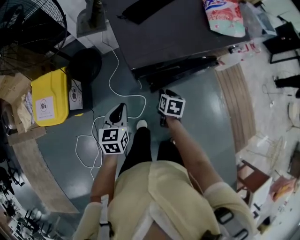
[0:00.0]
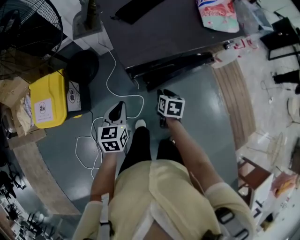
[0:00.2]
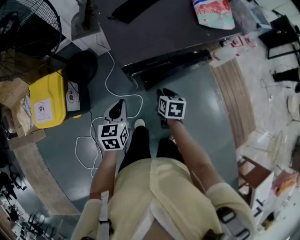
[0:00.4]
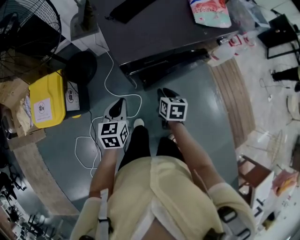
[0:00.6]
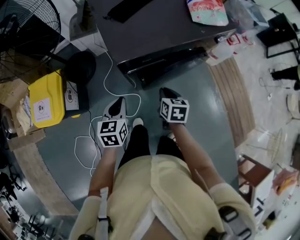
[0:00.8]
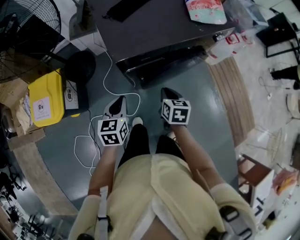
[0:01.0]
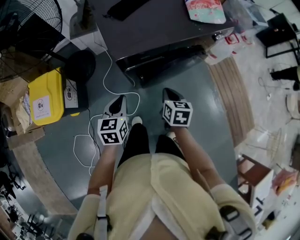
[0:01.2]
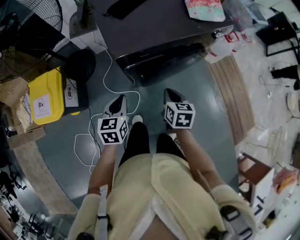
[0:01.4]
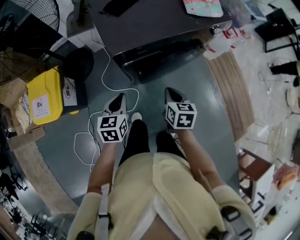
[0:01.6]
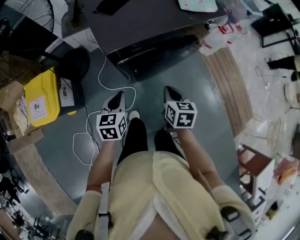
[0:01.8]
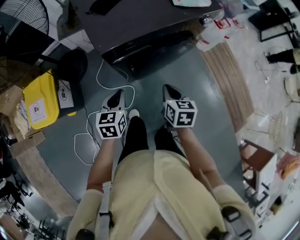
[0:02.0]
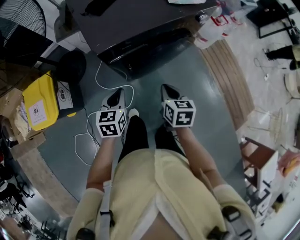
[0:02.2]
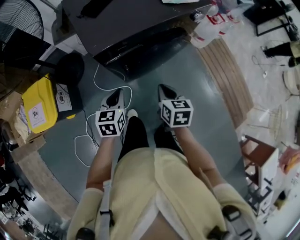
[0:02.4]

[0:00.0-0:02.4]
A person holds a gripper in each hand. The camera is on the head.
0:00.0 to 0:01.2: The left gripper is displaced to the right by approximately 5 cm; the right gripper heads upward and backward, covering approximately 10 cm, and closes up.
0:01.2 to 0:02.4: The left gripper travels to the right by some 5 cm. The right gripper moves roughly 5 cm.

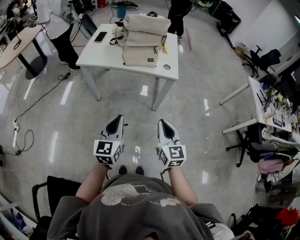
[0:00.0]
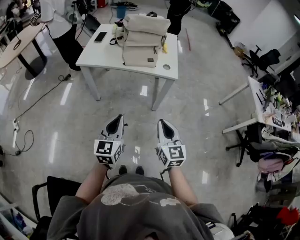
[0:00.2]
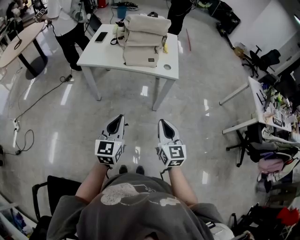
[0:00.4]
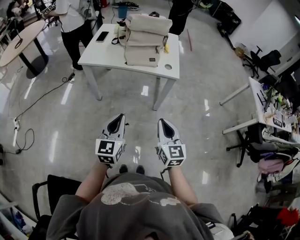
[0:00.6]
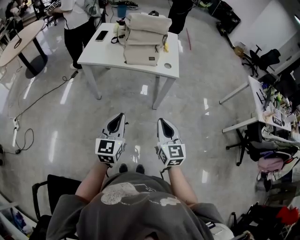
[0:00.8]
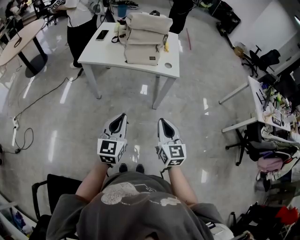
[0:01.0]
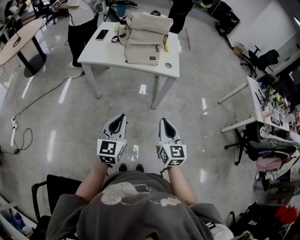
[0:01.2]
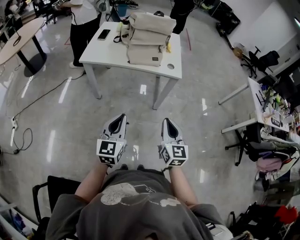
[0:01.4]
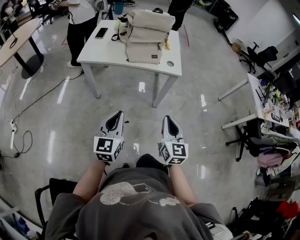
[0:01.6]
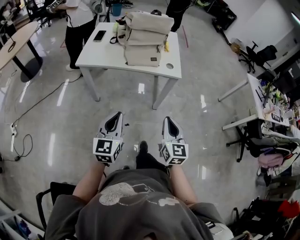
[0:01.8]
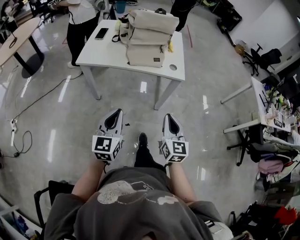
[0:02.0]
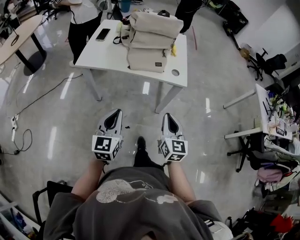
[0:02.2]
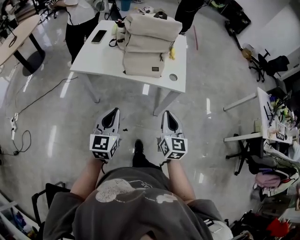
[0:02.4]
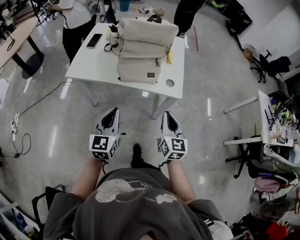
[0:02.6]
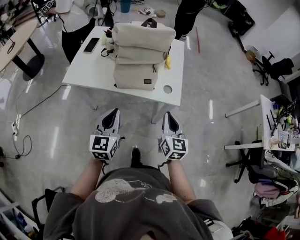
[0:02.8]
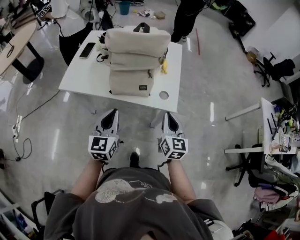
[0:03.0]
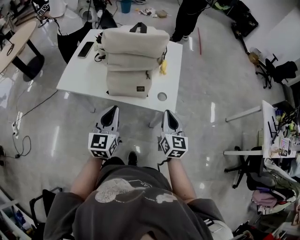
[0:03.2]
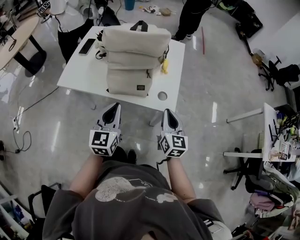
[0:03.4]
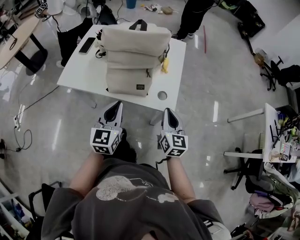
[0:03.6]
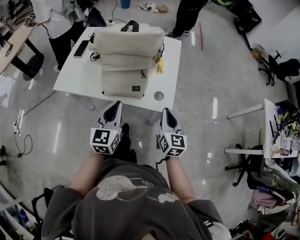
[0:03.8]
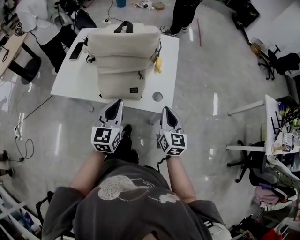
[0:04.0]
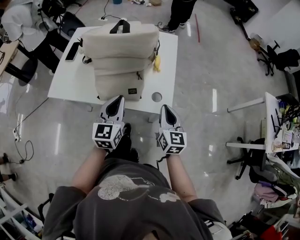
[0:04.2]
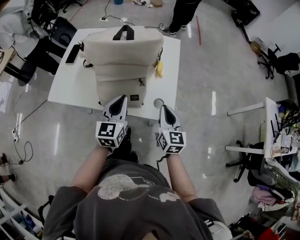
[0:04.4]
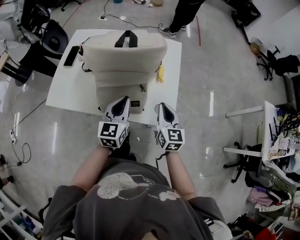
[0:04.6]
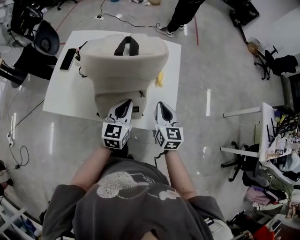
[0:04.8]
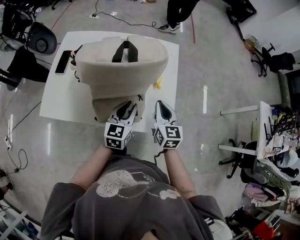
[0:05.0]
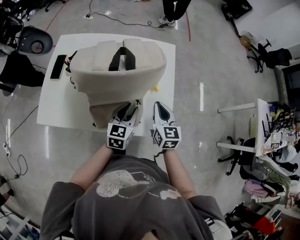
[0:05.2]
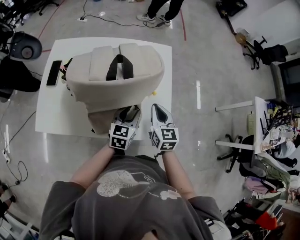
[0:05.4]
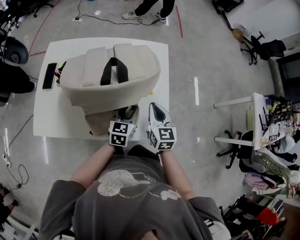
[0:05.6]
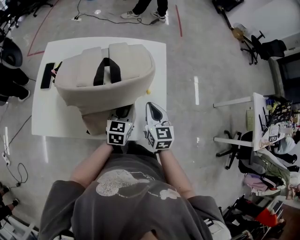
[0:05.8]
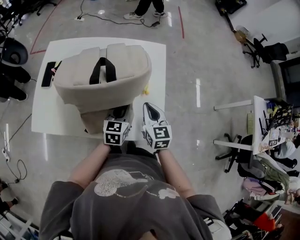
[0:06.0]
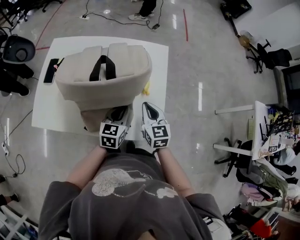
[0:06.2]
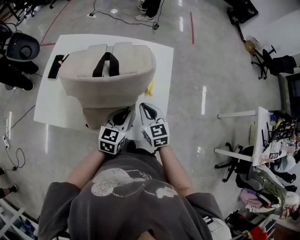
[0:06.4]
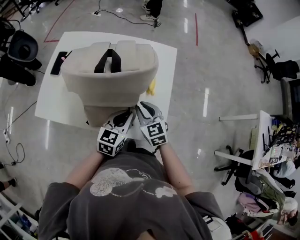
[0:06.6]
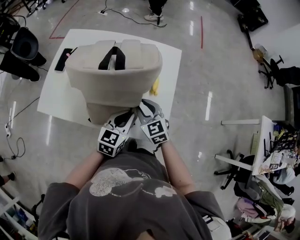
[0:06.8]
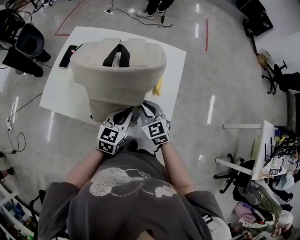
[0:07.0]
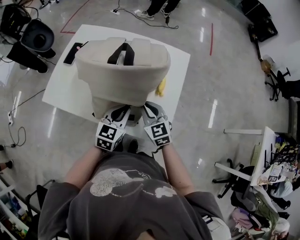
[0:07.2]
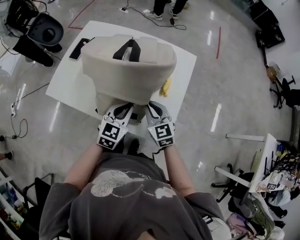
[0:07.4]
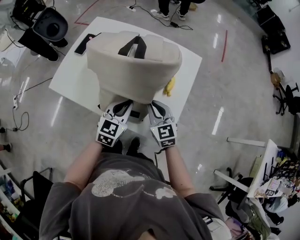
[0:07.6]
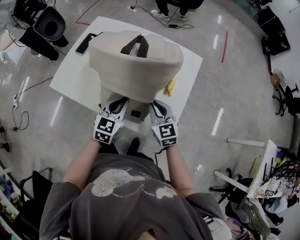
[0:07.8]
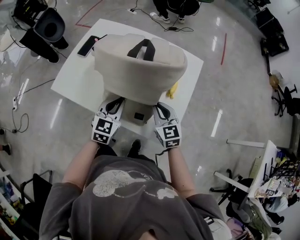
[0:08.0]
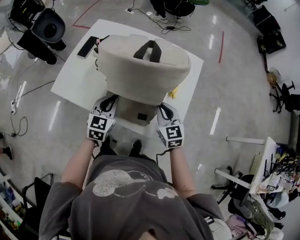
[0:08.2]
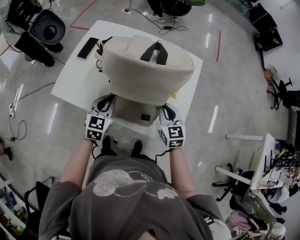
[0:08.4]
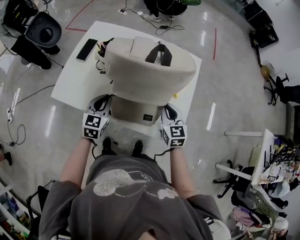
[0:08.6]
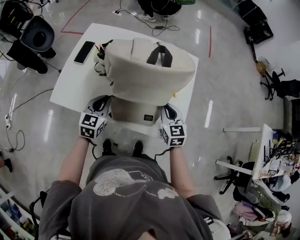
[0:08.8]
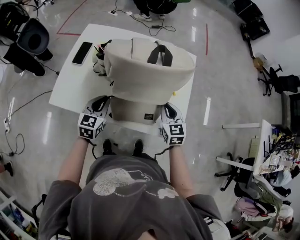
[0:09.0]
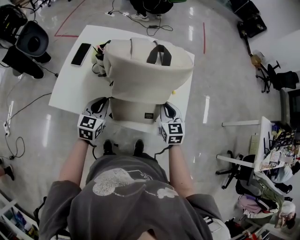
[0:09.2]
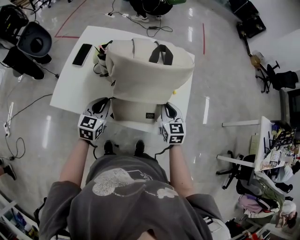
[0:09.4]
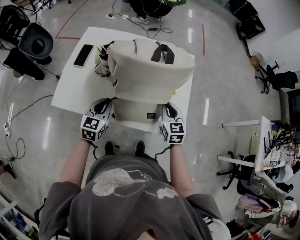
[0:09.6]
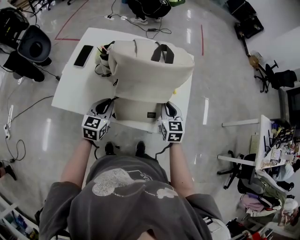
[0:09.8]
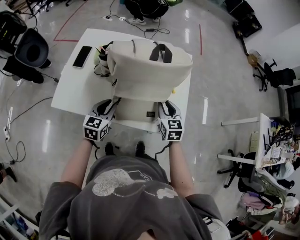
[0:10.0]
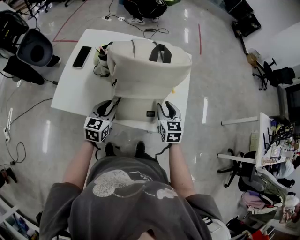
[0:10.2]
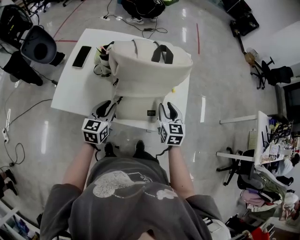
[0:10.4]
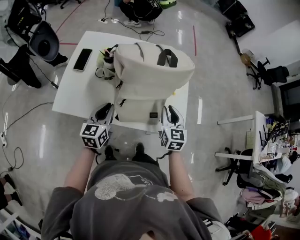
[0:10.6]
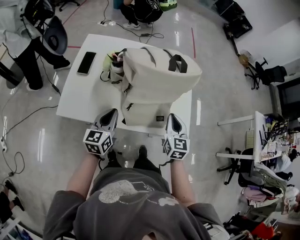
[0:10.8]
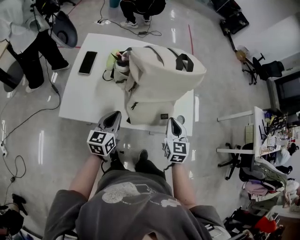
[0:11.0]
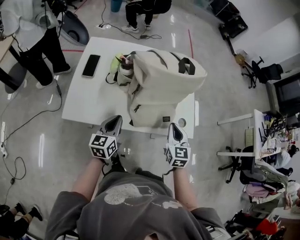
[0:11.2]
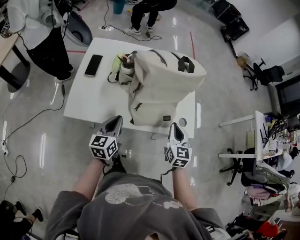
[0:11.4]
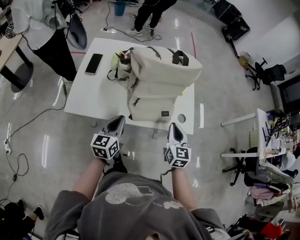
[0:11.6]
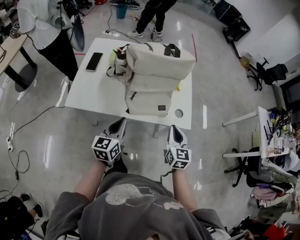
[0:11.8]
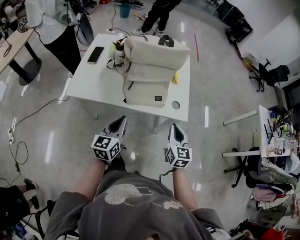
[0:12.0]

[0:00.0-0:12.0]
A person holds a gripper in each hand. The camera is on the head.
0:00.0 to 0:01.6: The grippers stay close to where they were, moving slightly.
0:01.6 to 0:03.0: Both grippers travel together forward, roughly 35 cm.
0:03.0 to 0:04.4: The left gripper shifts some 20 cm forward and to the right; the right gripper goes some 15 cm forward.
0:04.4 to 0:06.0: The left gripper goes some 20 cm forward and downward, rotates about 20 degrees, and opens, then closes again. The right gripper goes some 15 cm forward.
0:06.0 to 0:07.6: The left gripper travels backward, upward and to the left by about 10 cm; the right gripper travels to the left by roughly 5 cm, and turns by some 30 degrees.
0:07.6 to 0:09.0: The right gripper changes its angle by roughly 20 degrees; the left gripper travels to the left by approximately 20 cm.
0:09.0 to 0:10.4: The right gripper opens its fingers.
0:10.4 to 0:12.0: The two grippers go some 20 cm backward. The right gripper closes up. Meanwhile the left gripper closes its fingers.

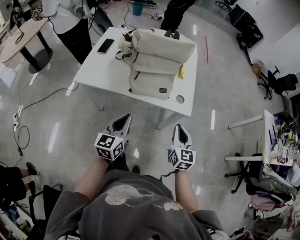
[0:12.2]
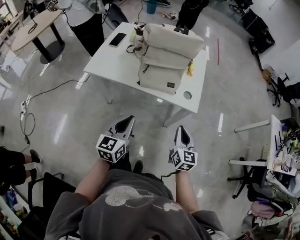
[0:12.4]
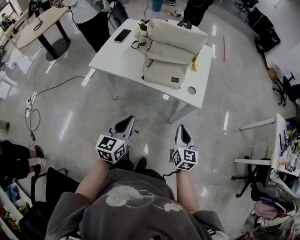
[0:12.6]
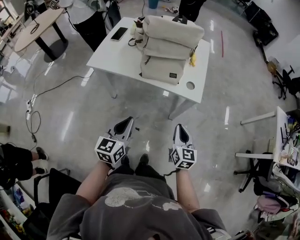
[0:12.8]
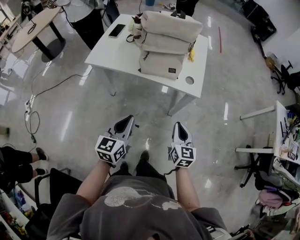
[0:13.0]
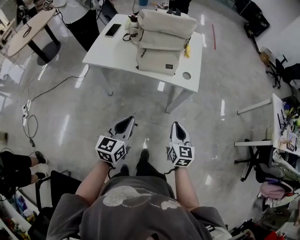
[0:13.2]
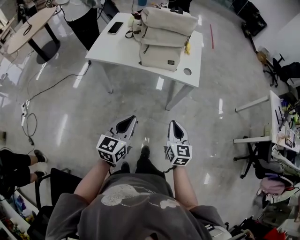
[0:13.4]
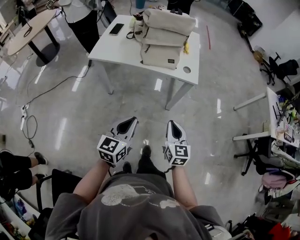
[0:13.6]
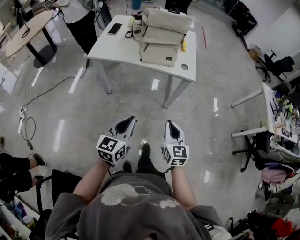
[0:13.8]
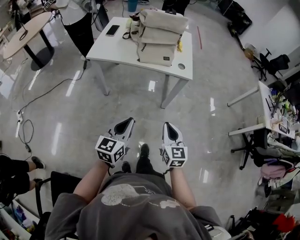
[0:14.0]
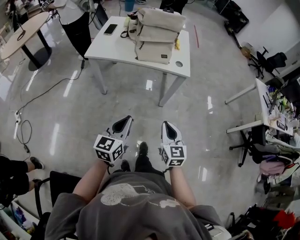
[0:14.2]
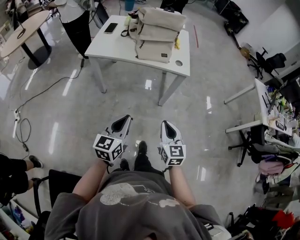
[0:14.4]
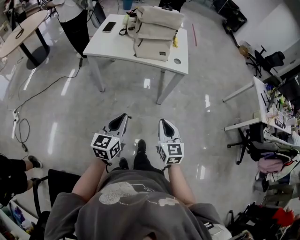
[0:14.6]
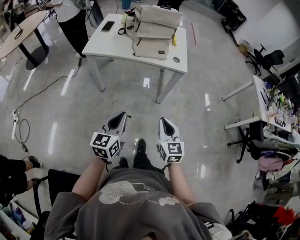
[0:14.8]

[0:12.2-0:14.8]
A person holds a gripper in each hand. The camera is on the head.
0:12.2 to 0:13.4: Both grippers move backward, approximately 20 cm.
0:13.4 to 0:14.8: The grippers both shift backward by some 15 cm.

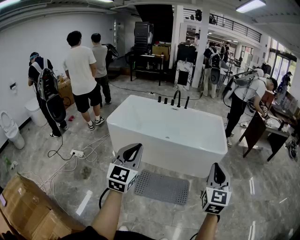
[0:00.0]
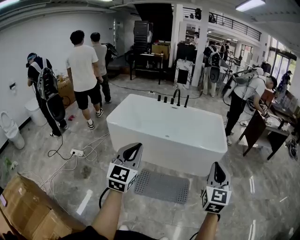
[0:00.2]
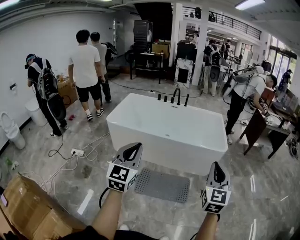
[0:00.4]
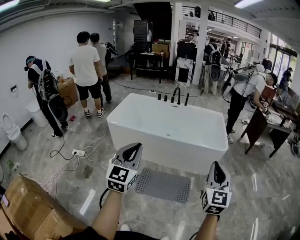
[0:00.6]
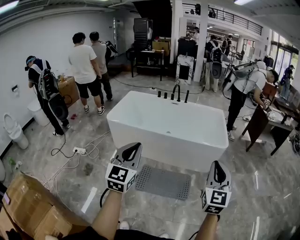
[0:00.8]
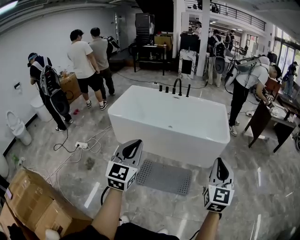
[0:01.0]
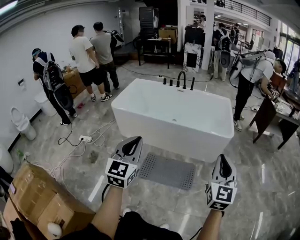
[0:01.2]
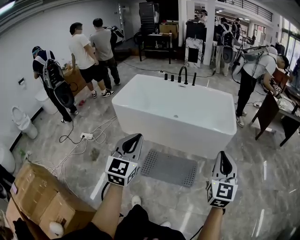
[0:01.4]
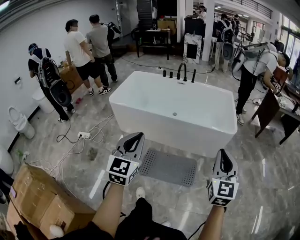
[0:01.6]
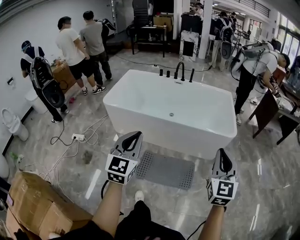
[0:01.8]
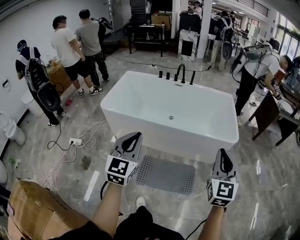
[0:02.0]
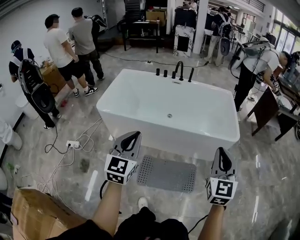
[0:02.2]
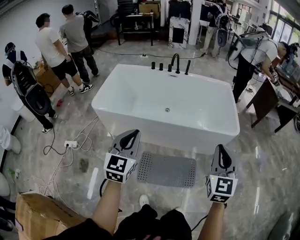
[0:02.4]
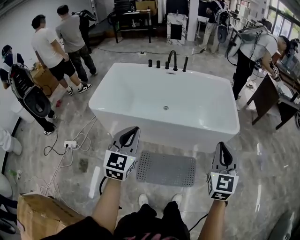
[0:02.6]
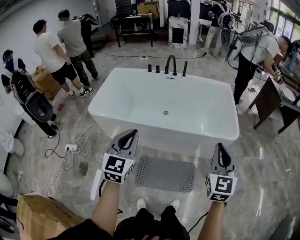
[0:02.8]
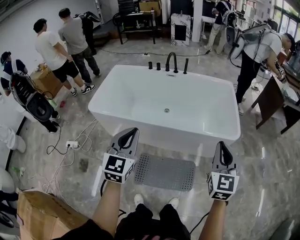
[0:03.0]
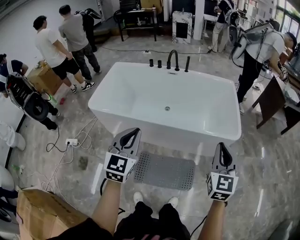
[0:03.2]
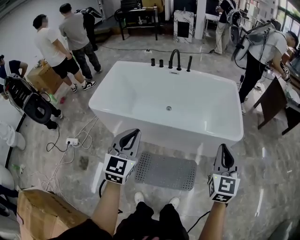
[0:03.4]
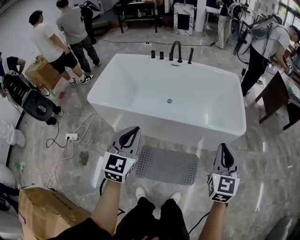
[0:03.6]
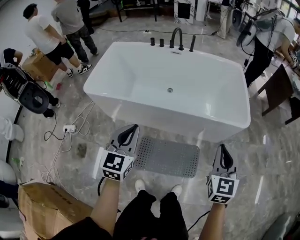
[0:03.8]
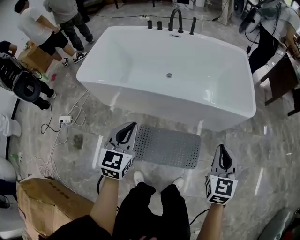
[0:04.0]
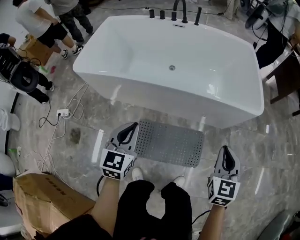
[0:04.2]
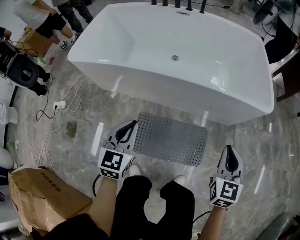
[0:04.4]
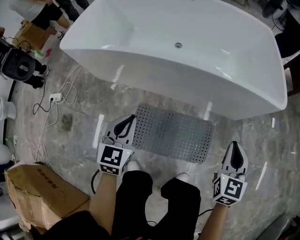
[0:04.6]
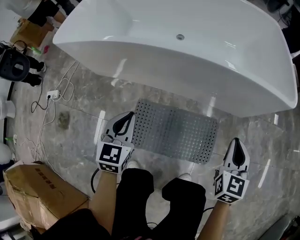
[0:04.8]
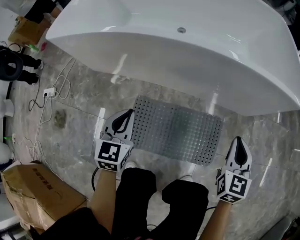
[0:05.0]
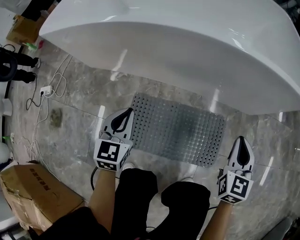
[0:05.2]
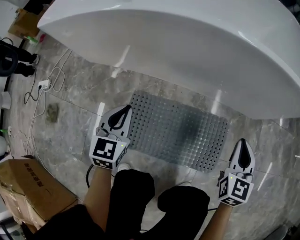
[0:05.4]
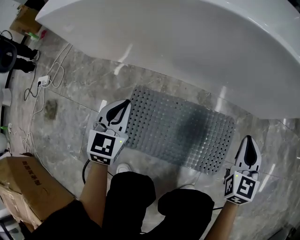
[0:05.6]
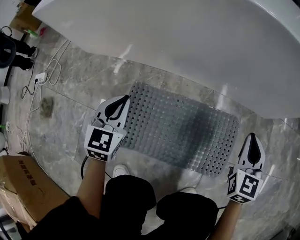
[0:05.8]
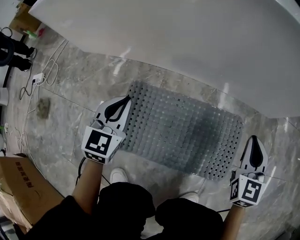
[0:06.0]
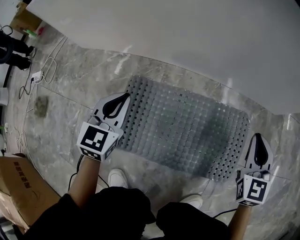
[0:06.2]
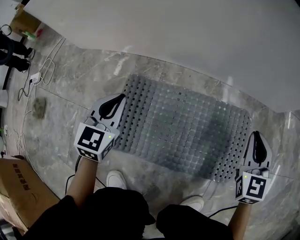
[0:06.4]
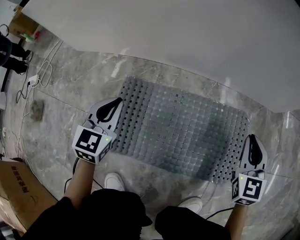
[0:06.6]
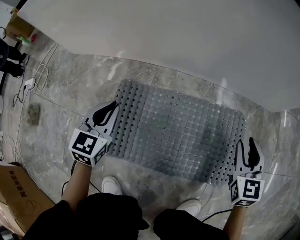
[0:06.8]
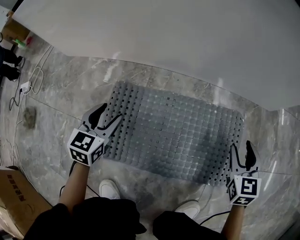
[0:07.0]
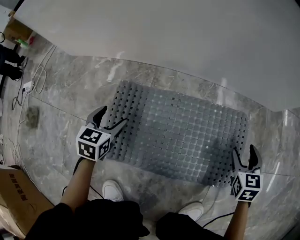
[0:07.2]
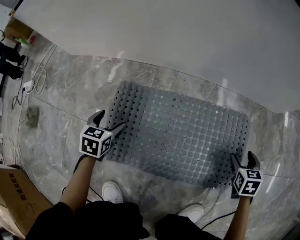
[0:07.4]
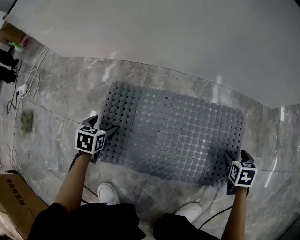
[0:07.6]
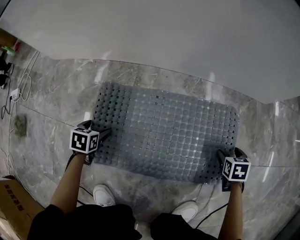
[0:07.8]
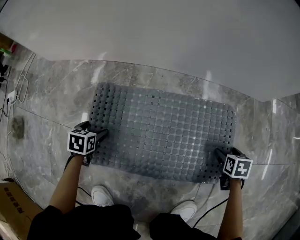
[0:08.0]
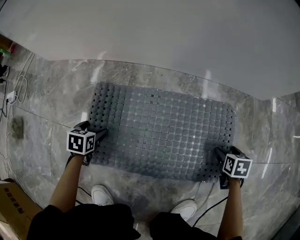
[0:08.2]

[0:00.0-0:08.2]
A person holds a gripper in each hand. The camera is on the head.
0:00.0 to 0:01.6: The left gripper shifts some 10 cm to the right and downward; the right gripper shifts some 10 cm forward and to the right.
0:01.6 to 0:03.2: The grippers both shift forward by some 30 cm.
0:03.2 to 0:05.0: Both grippers move downward, some 50 cm. The left gripper rotates about 20 degrees.
0:05.0 to 0:06.6: Both grippers move downward, some 25 cm.
0:06.6 to 0:08.2: The left gripper goes some 20 cm downward, points its fingers roughly 40 degrees further downward, and opens; the right gripper moves downward and to the right, approximately 25 cm, points its fingers roughly 40 degrees further downward, and opens its fingers.
